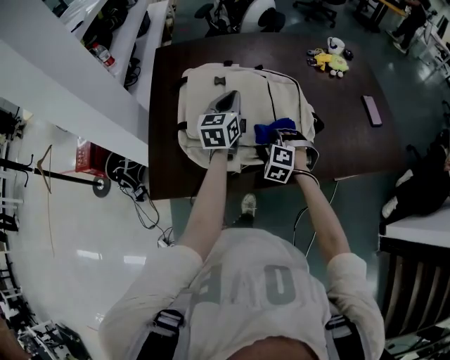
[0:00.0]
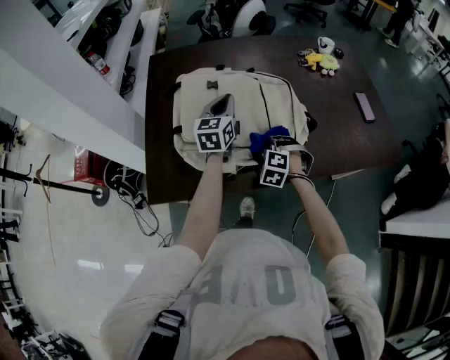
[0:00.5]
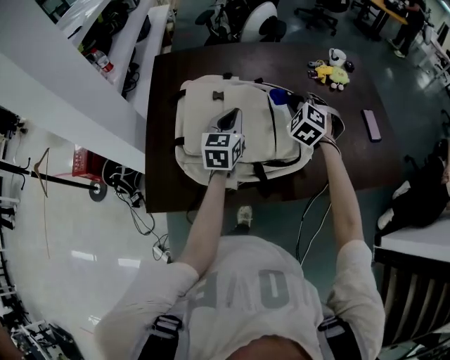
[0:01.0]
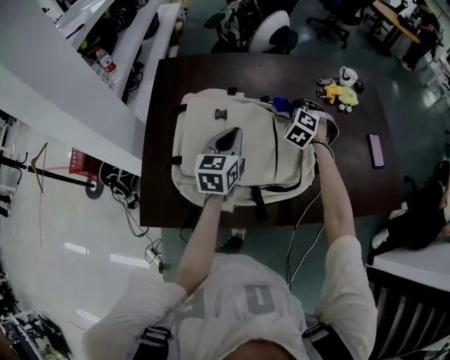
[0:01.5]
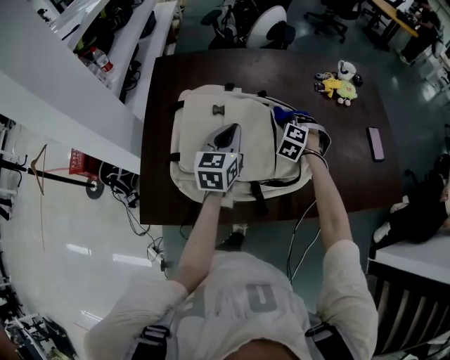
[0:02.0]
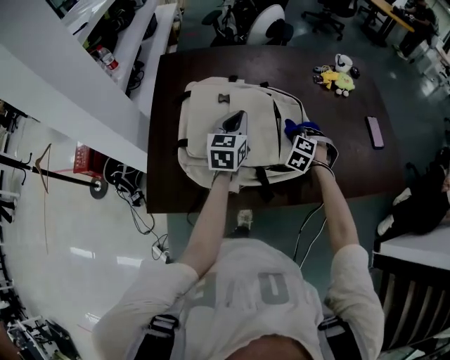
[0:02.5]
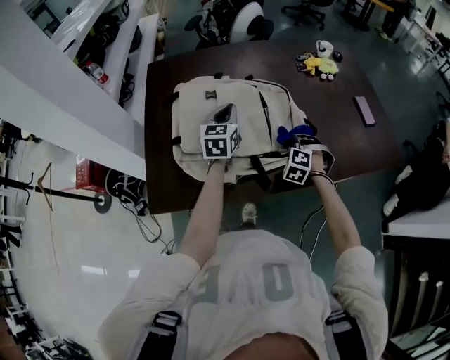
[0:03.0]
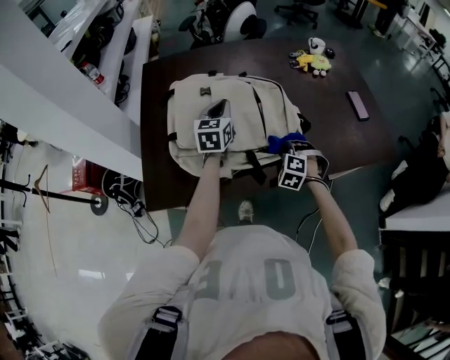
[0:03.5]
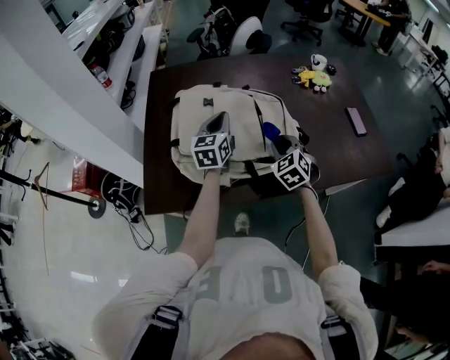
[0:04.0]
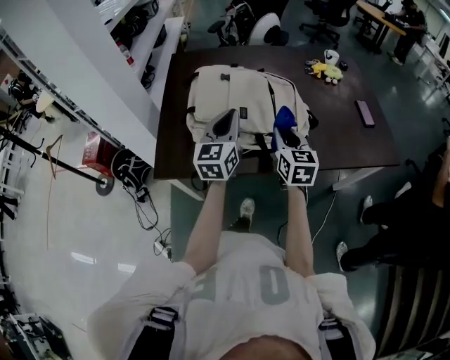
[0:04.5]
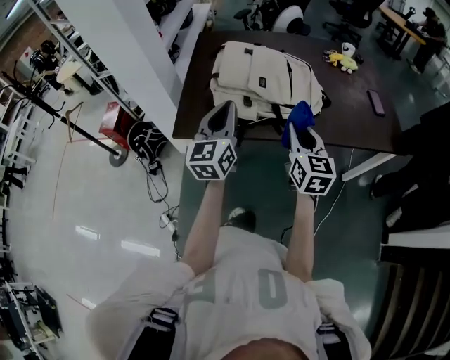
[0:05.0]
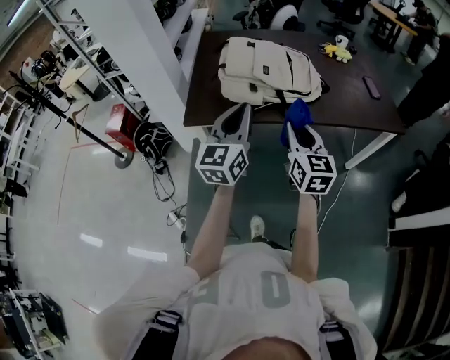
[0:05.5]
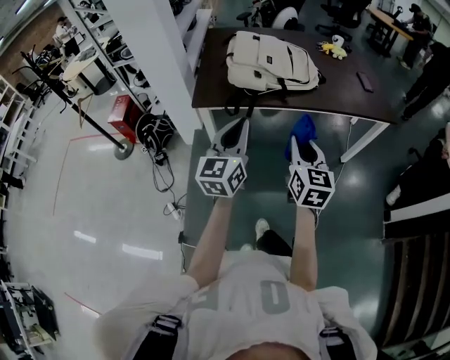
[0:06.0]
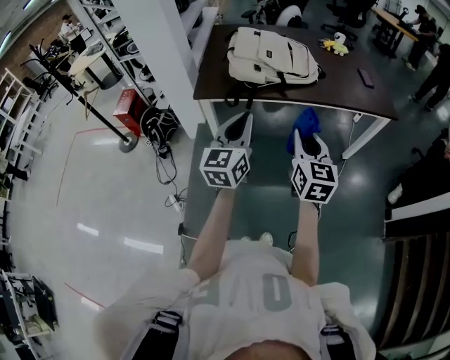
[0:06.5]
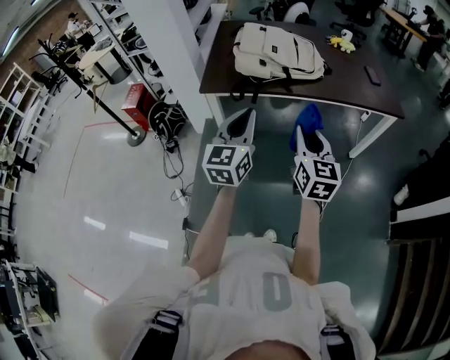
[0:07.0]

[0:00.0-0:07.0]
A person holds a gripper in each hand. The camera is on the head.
0:00.0 to 0:02.0: The right gripper moves forward, approximately 20 cm.
0:02.0 to 0:03.5: The right gripper moves backward, some 20 cm.
0:03.5 to 0:05.0: The left gripper shifts approximately 35 cm backward, and rotates roughly 30 degrees, while the right gripper shifts approximately 30 cm upward and backward, and tilts its fingers roughly 50 degrees upward.
0:05.0 to 0:07.0: The two grippers go some 30 cm backward.

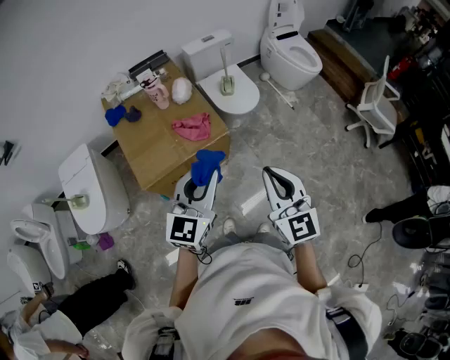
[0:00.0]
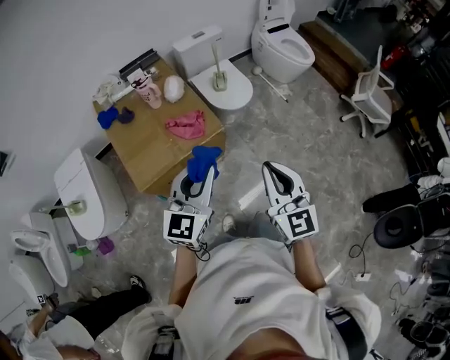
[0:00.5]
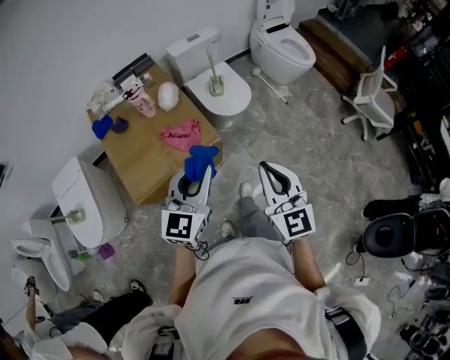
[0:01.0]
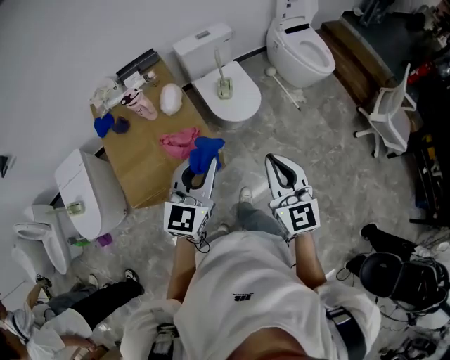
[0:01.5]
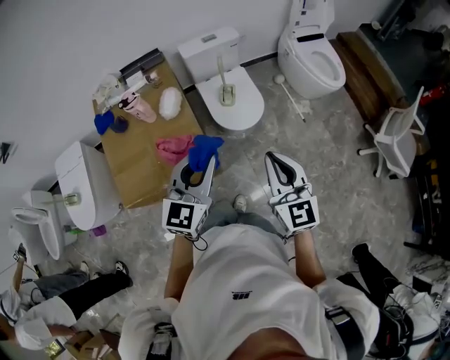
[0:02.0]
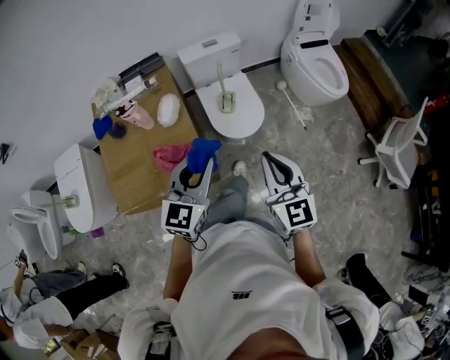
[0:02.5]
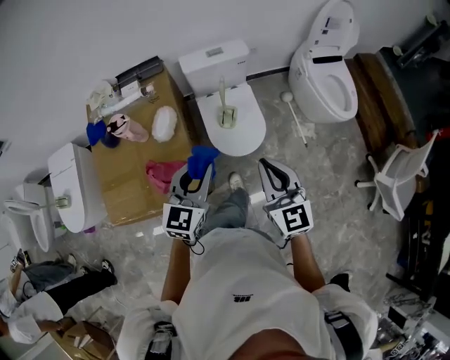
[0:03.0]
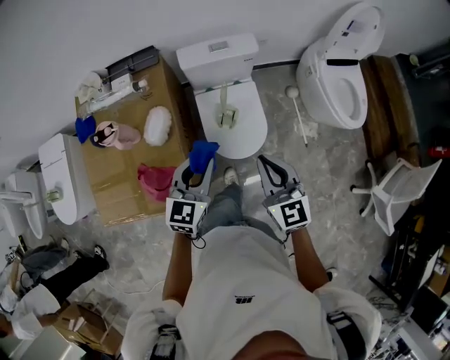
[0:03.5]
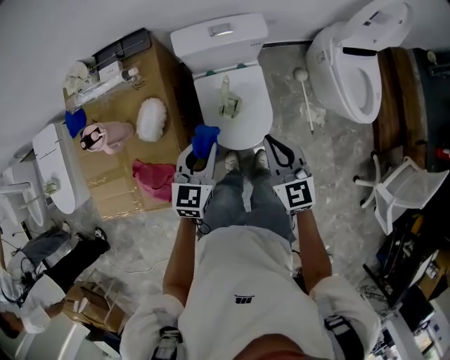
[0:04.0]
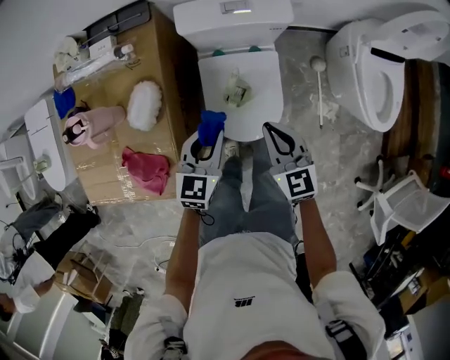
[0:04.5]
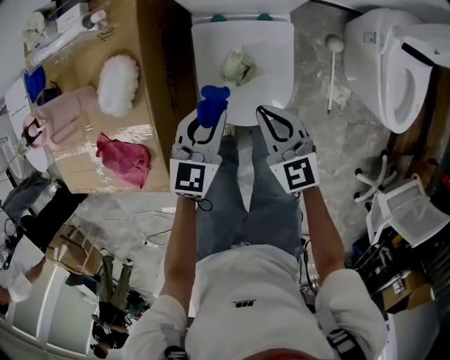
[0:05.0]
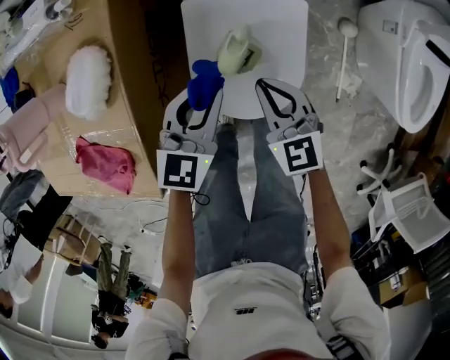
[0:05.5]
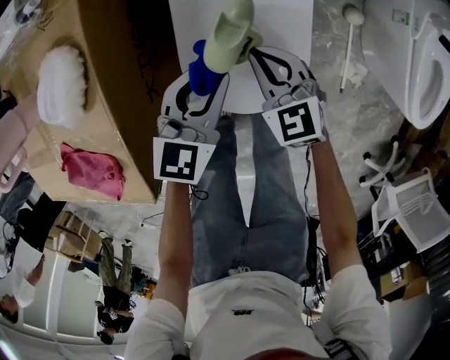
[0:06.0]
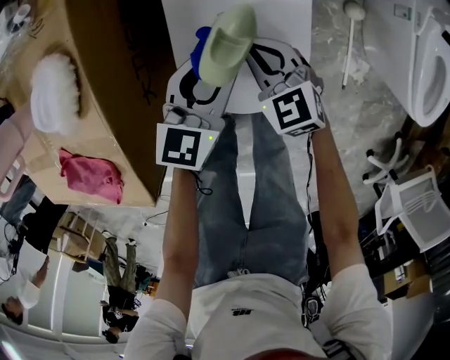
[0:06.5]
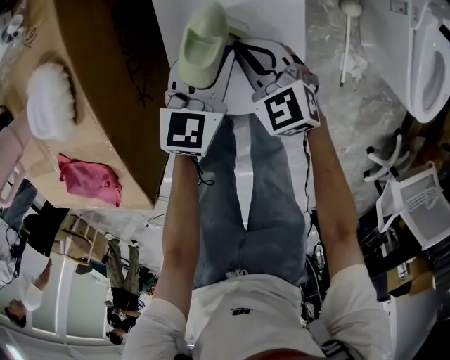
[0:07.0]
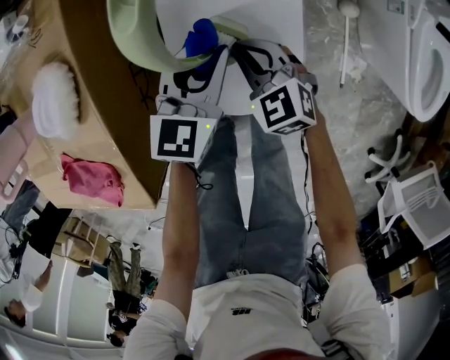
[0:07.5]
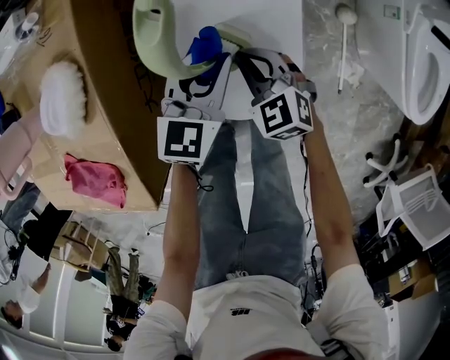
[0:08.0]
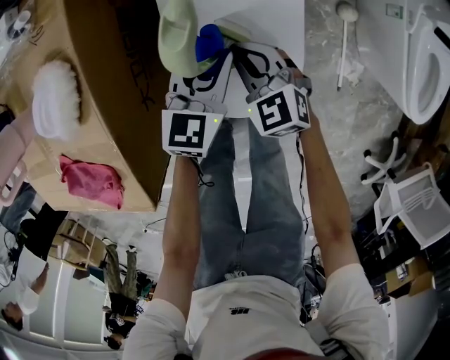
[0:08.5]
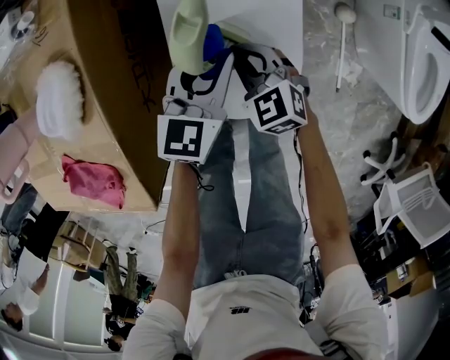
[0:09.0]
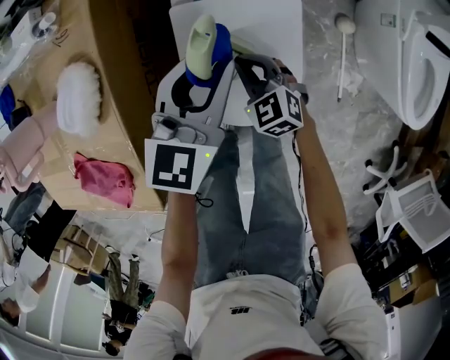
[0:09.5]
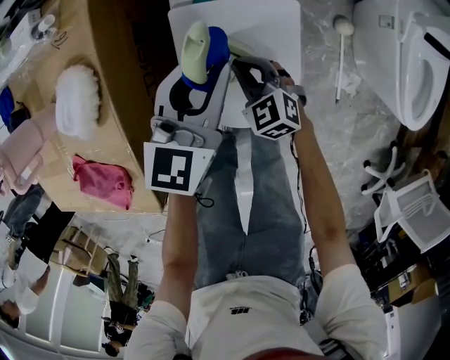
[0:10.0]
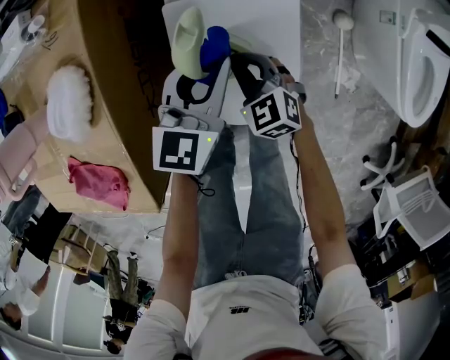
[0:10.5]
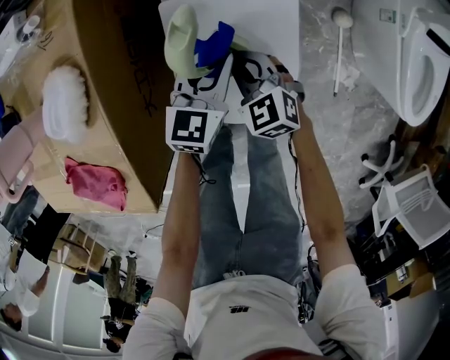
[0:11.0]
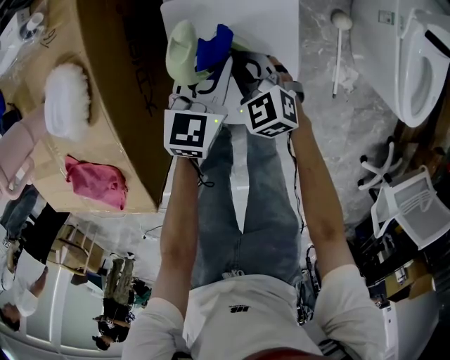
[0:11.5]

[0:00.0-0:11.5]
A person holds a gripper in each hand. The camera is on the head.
0:00.0 to 0:02.0: The left gripper shifts approximately 30 cm forward. The right gripper heads forward and to the right, covering roughly 35 cm.
0:02.0 to 0:04.0: The two grippers go some 40 cm forward and downward. The right gripper swivels about 20 degrees. The left gripper changes its angle by roughly 30 degrees.
0:04.0 to 0:06.0: Both grippers travel together downward, some 35 cm. The right gripper swivels approximately 30 degrees.
0:06.0 to 0:07.5: The left gripper changes place by roughly 5 cm.
0:07.5 to 0:09.5: The left gripper is displaced upward by about 10 cm.
0:09.5 to 0:11.5: The left gripper is displaced downward by roughly 10 cm.

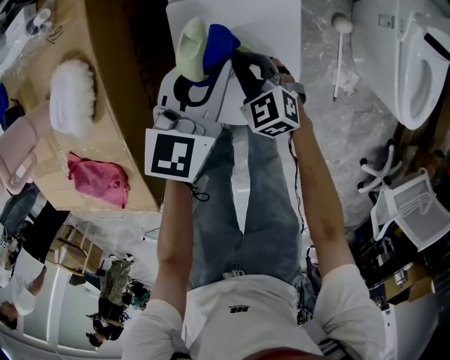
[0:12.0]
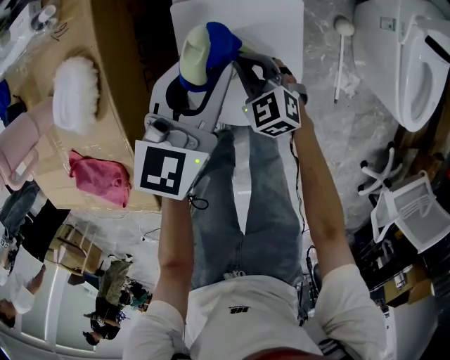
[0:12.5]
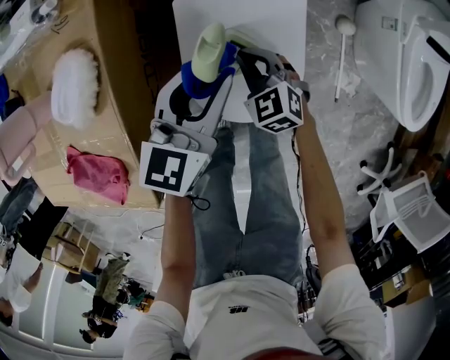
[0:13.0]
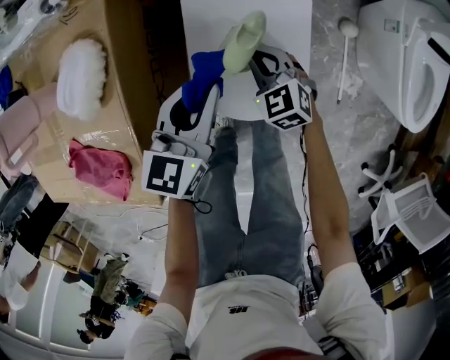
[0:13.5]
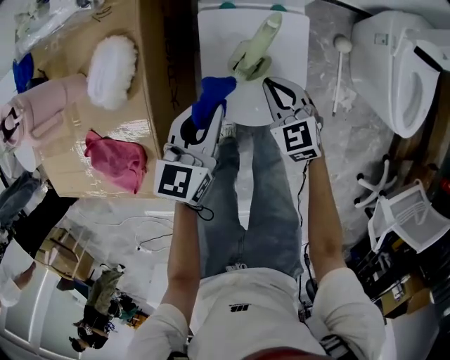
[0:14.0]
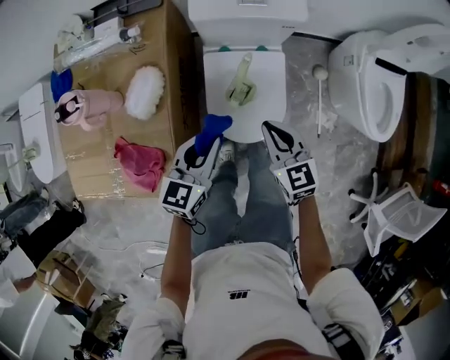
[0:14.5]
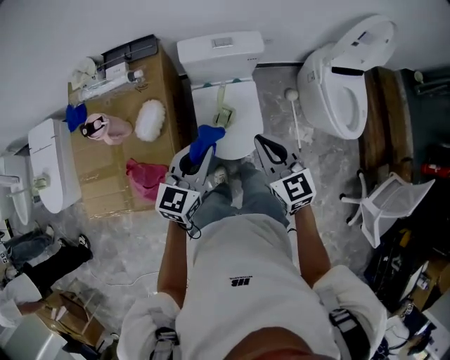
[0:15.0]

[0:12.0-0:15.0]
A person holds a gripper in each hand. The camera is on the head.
0:12.0 to 0:13.5: The left gripper is displaced backward and to the left by about 10 cm.
0:13.5 to 0:15.0: The grippers both shift upward by some 40 cm. The right gripper changes its angle by roughly 30 degrees.

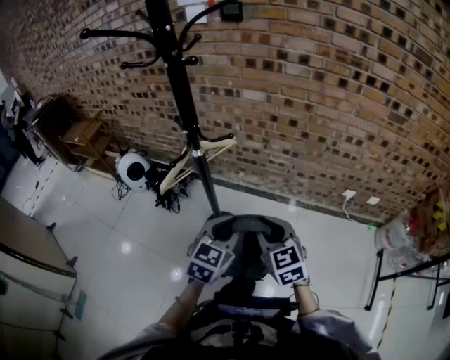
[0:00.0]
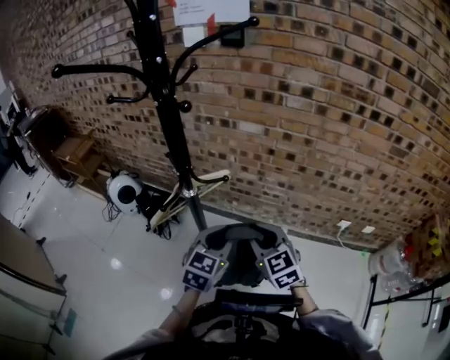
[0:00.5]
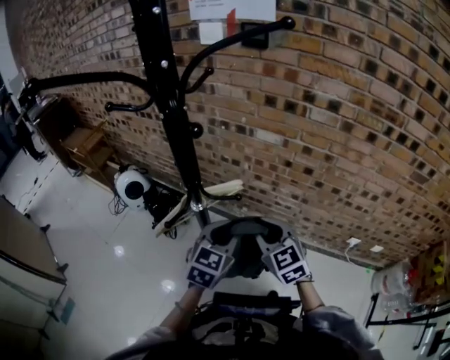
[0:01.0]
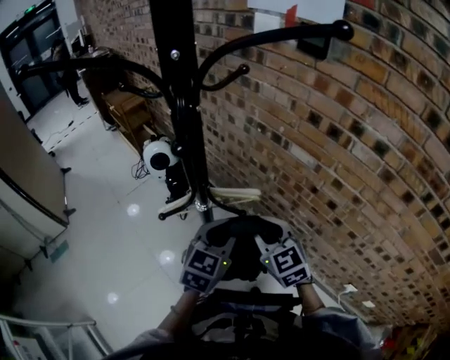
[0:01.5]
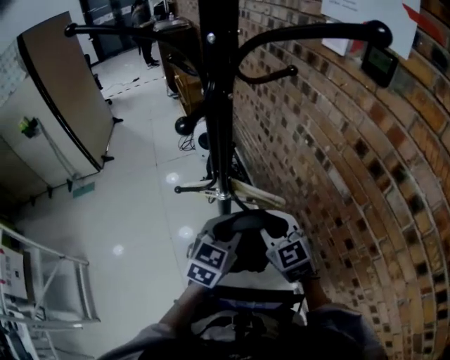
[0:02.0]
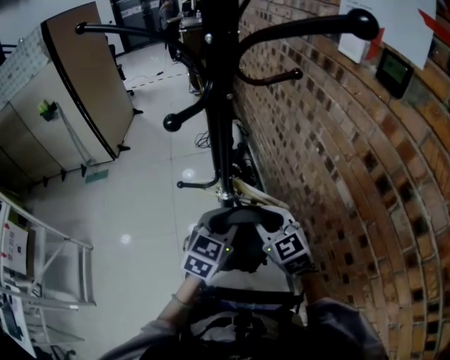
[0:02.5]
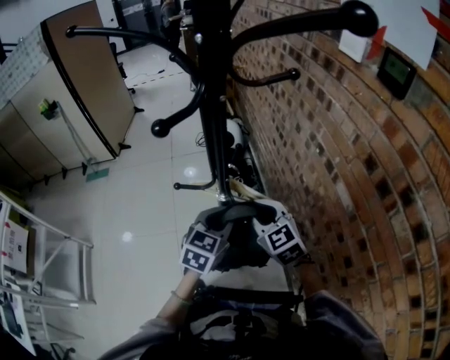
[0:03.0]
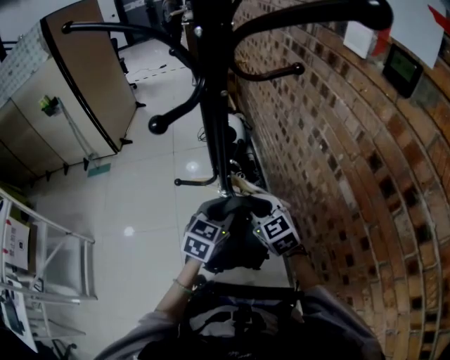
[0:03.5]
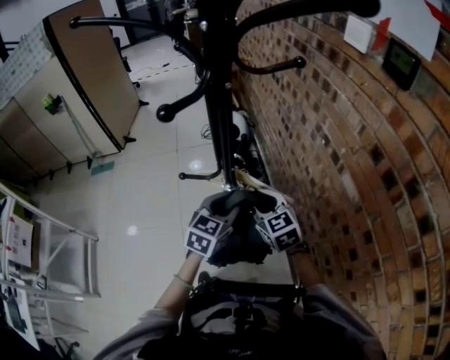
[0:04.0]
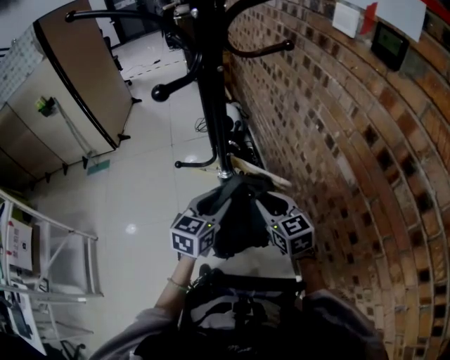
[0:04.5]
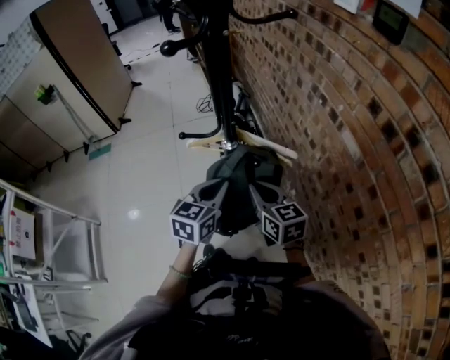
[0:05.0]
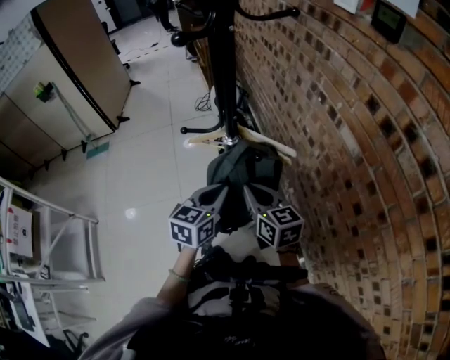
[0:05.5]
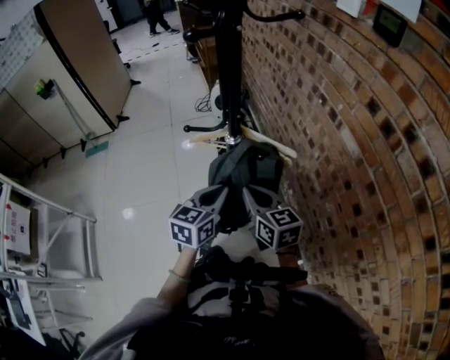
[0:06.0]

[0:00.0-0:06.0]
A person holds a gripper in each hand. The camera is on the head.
0:00.0 to 0:02.0: The left gripper moves some 25 cm, and rotates about 50 degrees. The right gripper moves about 30 cm, and changes its angle by roughly 60 degrees.
0:02.0 to 0:04.0: The grippers both shift forward by some 5 cm.
0:04.0 to 0:06.0: The two grippers go about 10 cm backward. The right gripper rotates approximately 20 degrees, and closes. Meanwhile the left gripper closes.
